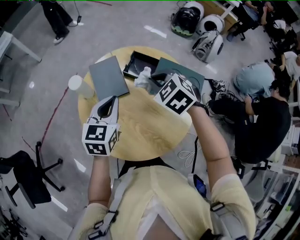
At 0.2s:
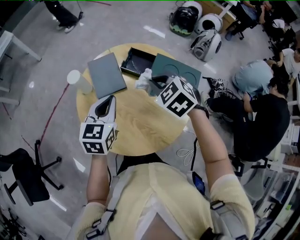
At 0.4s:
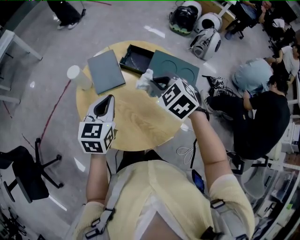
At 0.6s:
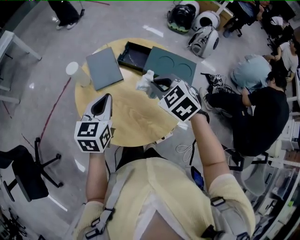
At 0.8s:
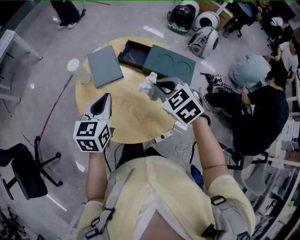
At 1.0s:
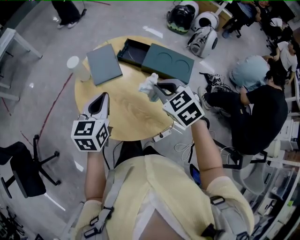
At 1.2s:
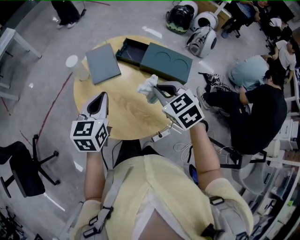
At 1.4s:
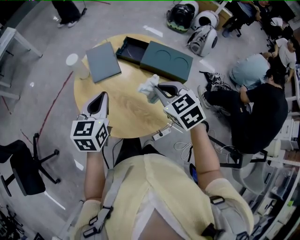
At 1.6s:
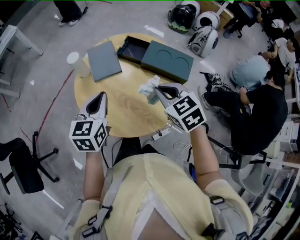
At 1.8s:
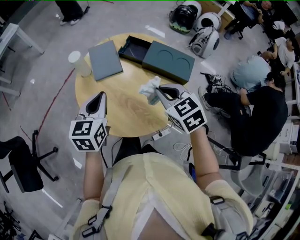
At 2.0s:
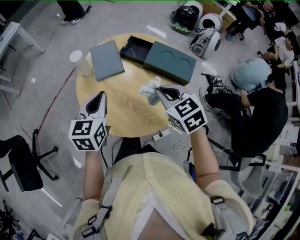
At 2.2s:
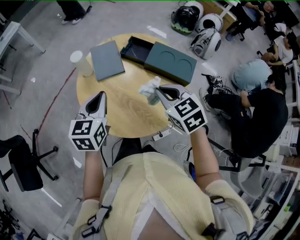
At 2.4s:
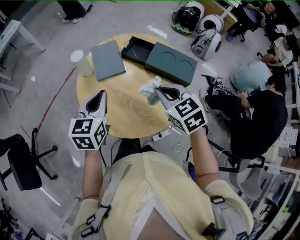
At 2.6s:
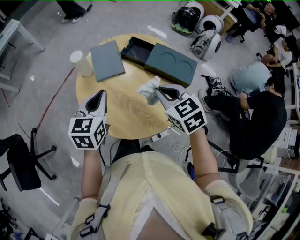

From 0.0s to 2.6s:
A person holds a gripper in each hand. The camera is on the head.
From 0.0s to 1.2s: The left gripper shifts some 10 cm backward. Meanwhile the right gripper moves backward, about 15 cm.
From 1.2s to 2.6s: The grippers stay close to where they were, moving slightly.

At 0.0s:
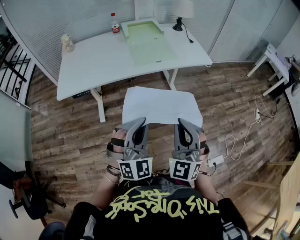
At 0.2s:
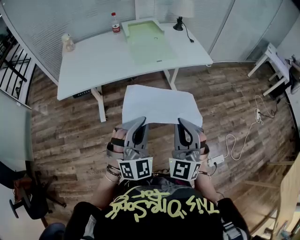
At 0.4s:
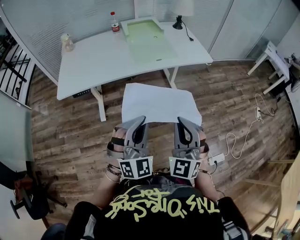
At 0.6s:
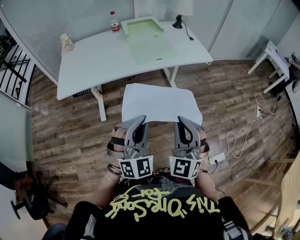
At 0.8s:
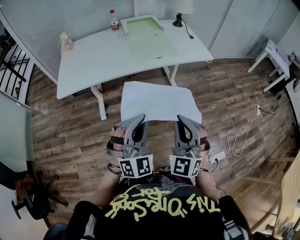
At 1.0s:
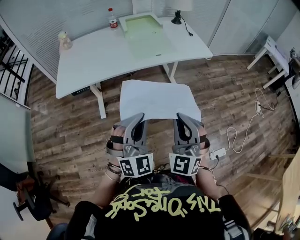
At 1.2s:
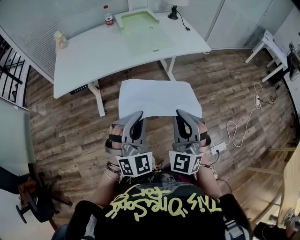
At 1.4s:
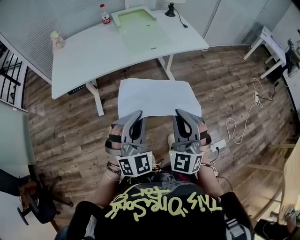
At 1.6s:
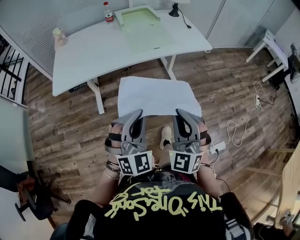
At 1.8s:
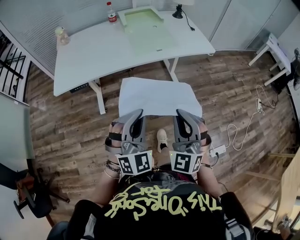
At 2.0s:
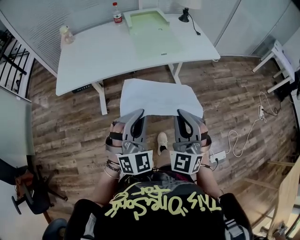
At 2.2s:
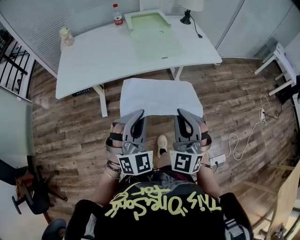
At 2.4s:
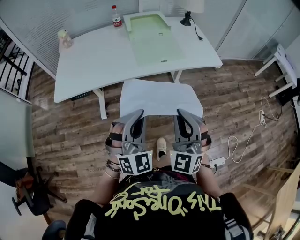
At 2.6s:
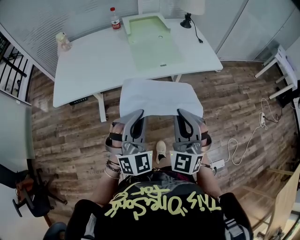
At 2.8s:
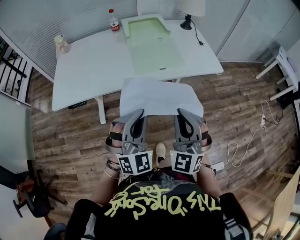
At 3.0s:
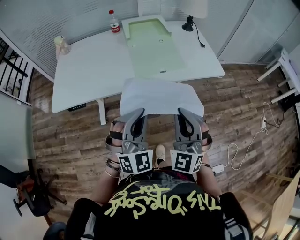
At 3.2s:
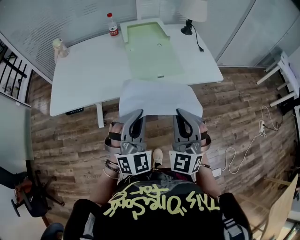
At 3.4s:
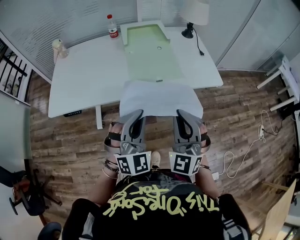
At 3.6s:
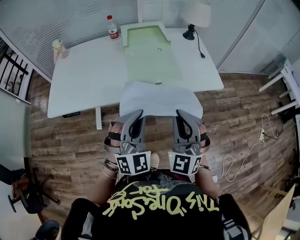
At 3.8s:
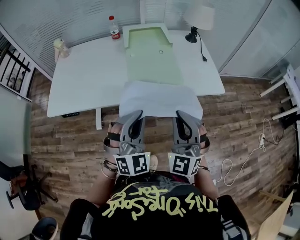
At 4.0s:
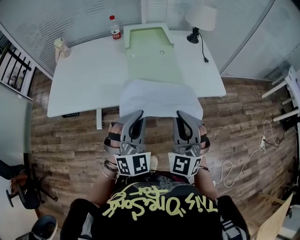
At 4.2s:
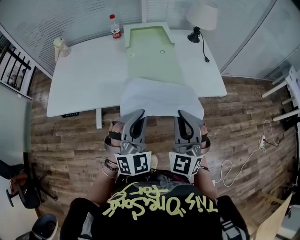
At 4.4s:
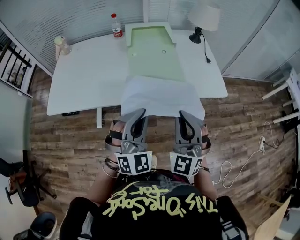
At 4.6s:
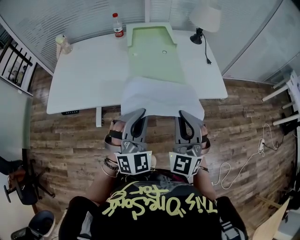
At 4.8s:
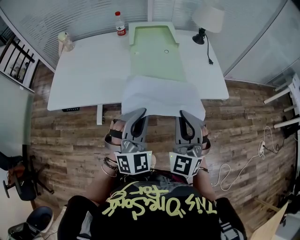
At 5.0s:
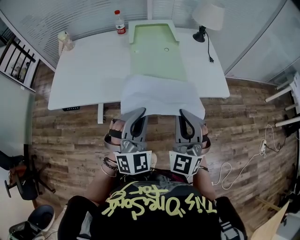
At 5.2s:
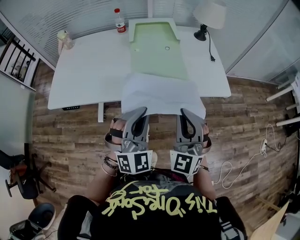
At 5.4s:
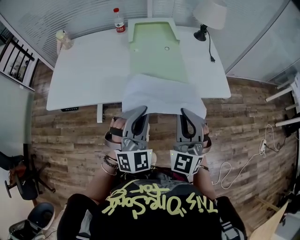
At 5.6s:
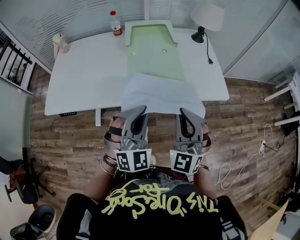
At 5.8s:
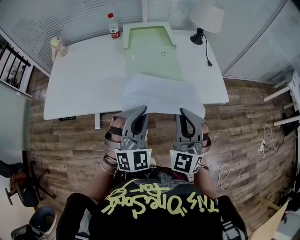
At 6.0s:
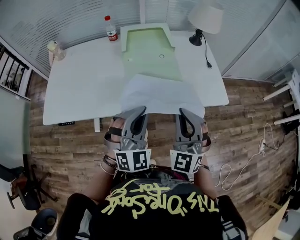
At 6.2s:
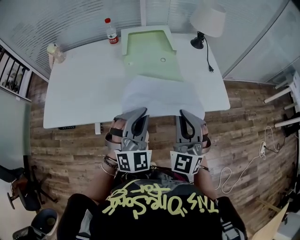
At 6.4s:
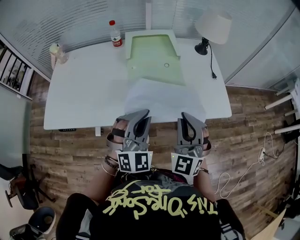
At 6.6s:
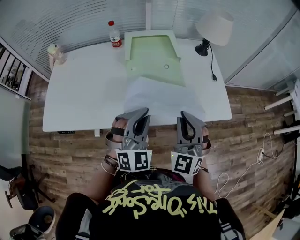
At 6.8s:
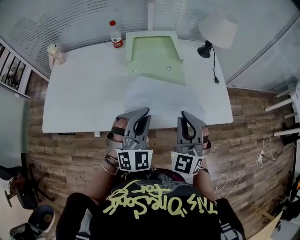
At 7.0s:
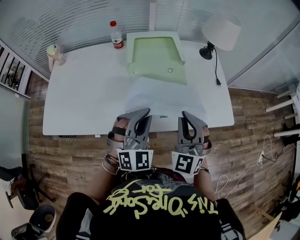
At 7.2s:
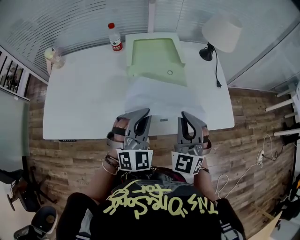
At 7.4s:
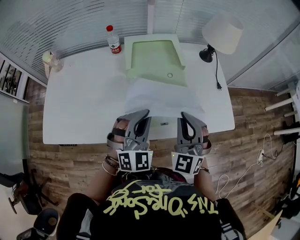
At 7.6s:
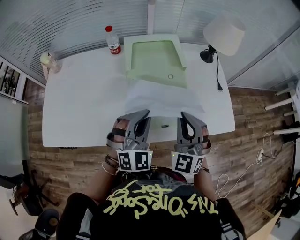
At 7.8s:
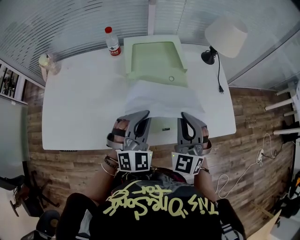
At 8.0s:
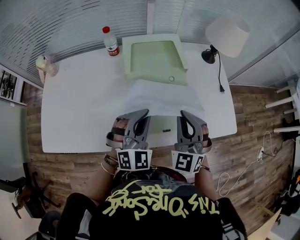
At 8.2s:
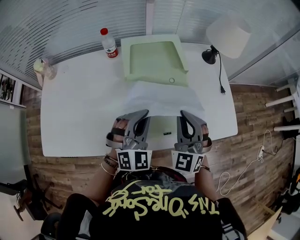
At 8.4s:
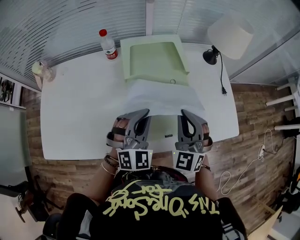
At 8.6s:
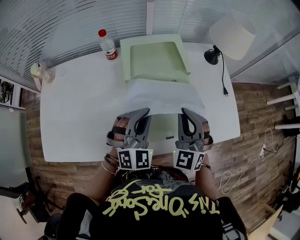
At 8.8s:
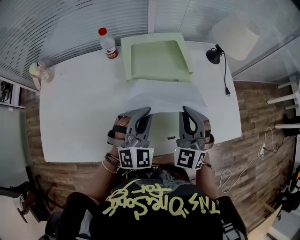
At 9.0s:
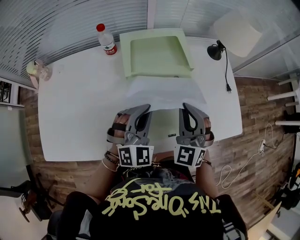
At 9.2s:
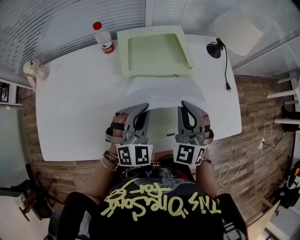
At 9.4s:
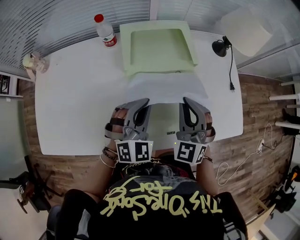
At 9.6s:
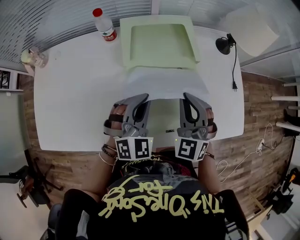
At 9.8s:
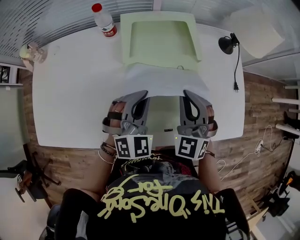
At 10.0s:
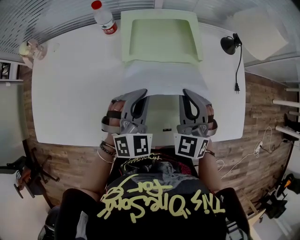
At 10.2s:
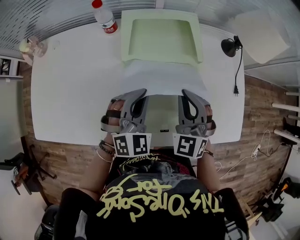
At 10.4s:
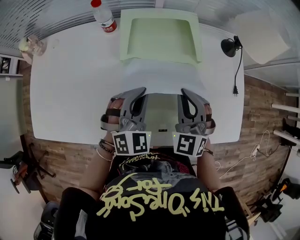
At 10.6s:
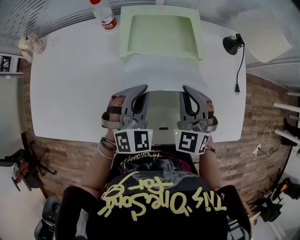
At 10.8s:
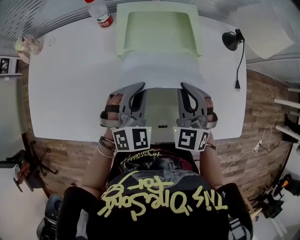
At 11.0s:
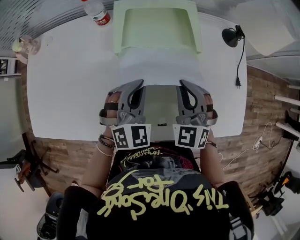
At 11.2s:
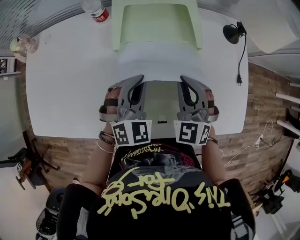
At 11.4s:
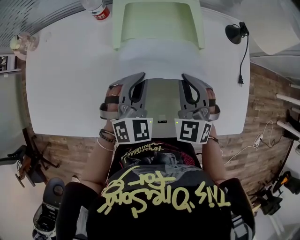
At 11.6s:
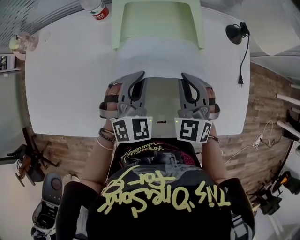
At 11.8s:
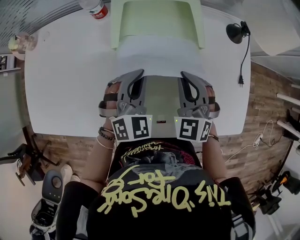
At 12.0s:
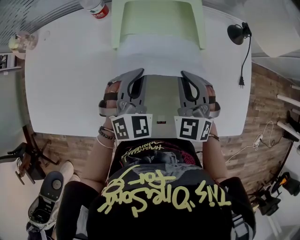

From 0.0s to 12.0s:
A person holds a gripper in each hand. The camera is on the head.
From 0.0s to 1.6s: The grippers move only a little.
From 1.6s to 3.0s: Both grippers travel together forward, approximately 15 cm.
From 3.0s to 4.4s: Both grippers travel together forward, about 10 cm.
From 4.4s to 6.0s: Both grippers travel together forward, some 5 cm.
From 6.0s to 7.6s: The two grippers go approximately 15 cm forward.
From 7.6s to 9.0s: The two grippers go about 5 cm forward.
From 9.0s to 10.4s: The right gripper shifts about 5 cm forward. Meanwhile the left gripper moves about 5 cm.
From 10.4s to 12.0s: The grippers stay close to where they were, moving slightly.

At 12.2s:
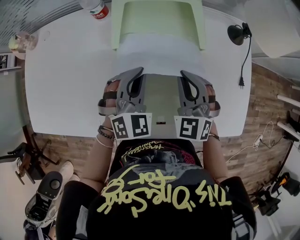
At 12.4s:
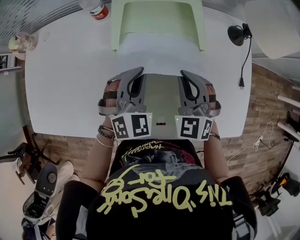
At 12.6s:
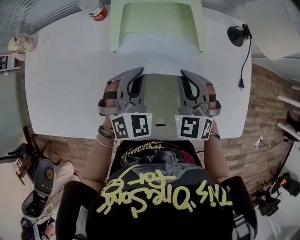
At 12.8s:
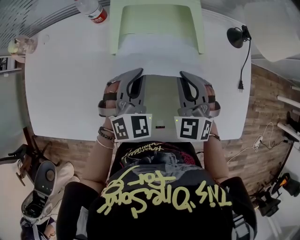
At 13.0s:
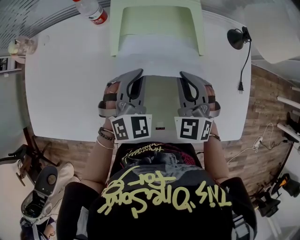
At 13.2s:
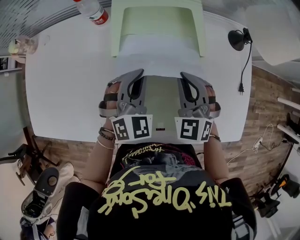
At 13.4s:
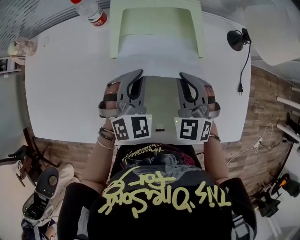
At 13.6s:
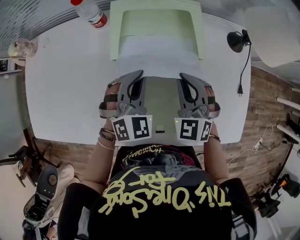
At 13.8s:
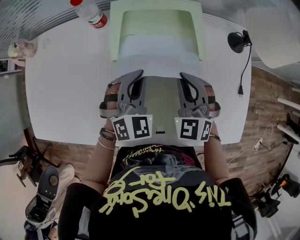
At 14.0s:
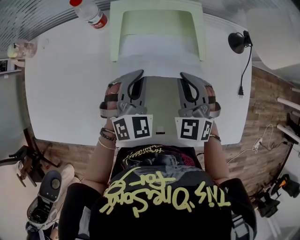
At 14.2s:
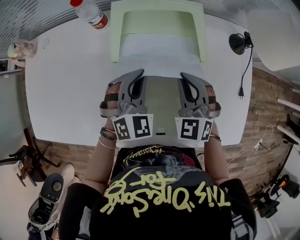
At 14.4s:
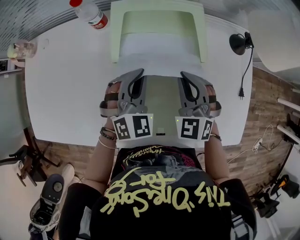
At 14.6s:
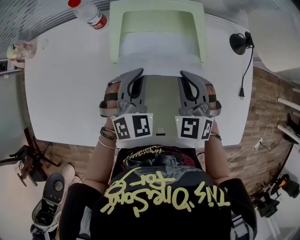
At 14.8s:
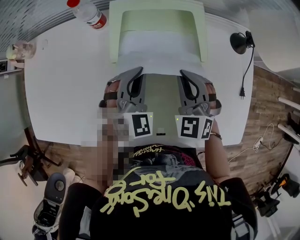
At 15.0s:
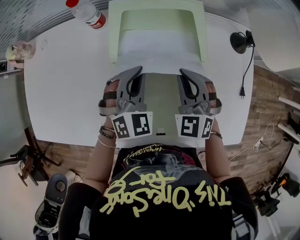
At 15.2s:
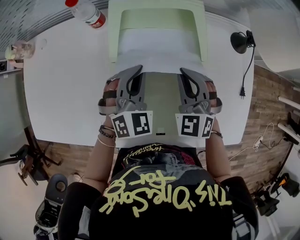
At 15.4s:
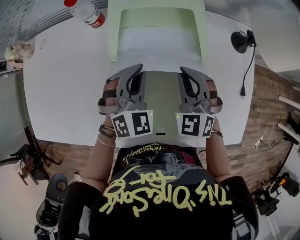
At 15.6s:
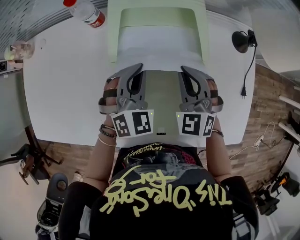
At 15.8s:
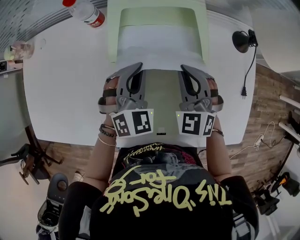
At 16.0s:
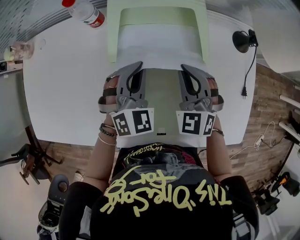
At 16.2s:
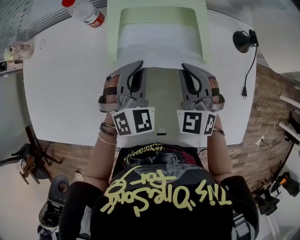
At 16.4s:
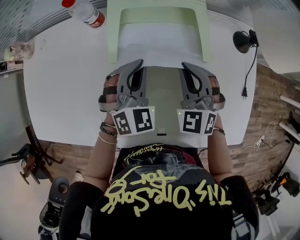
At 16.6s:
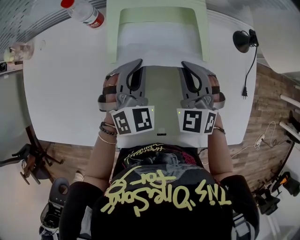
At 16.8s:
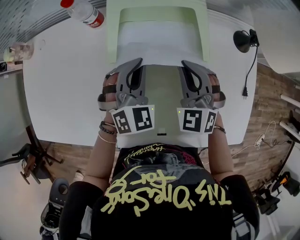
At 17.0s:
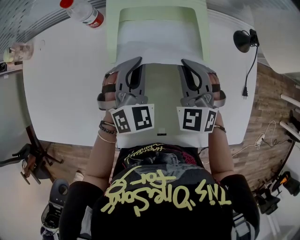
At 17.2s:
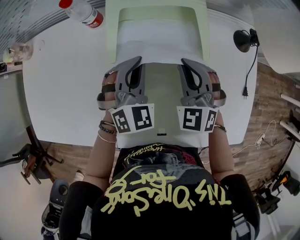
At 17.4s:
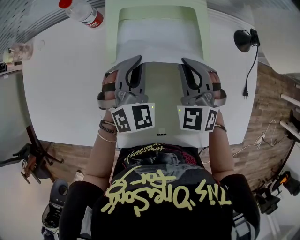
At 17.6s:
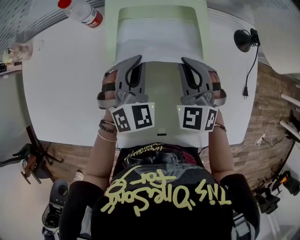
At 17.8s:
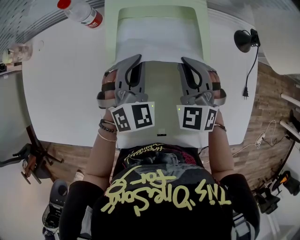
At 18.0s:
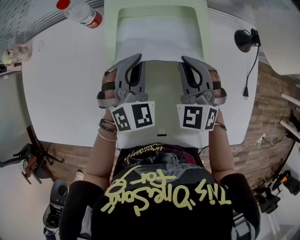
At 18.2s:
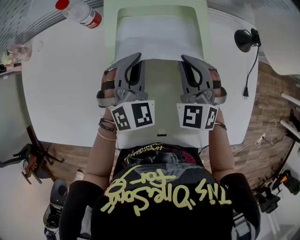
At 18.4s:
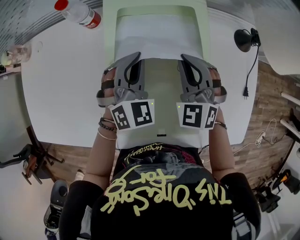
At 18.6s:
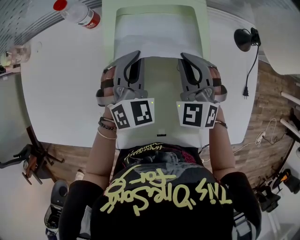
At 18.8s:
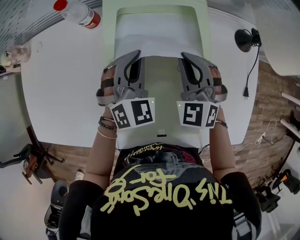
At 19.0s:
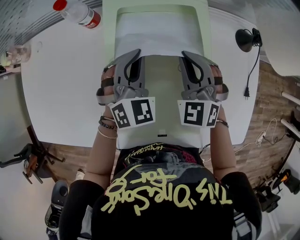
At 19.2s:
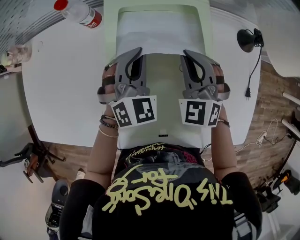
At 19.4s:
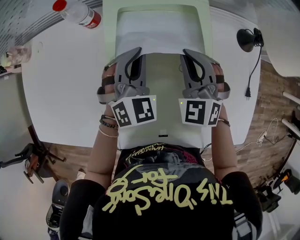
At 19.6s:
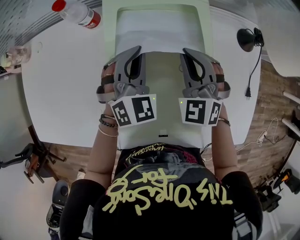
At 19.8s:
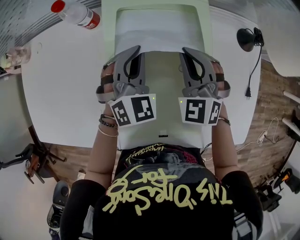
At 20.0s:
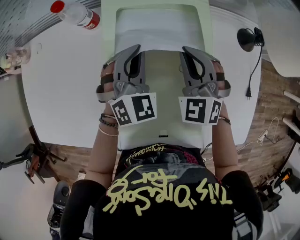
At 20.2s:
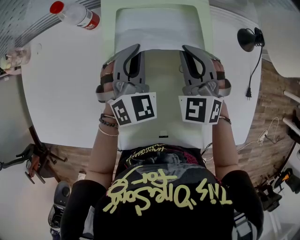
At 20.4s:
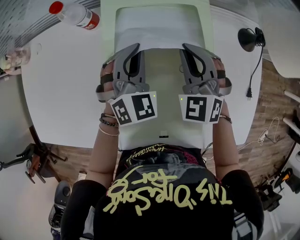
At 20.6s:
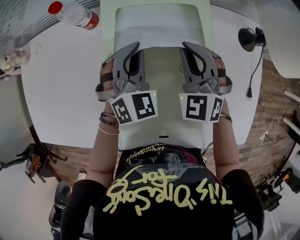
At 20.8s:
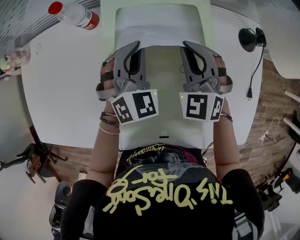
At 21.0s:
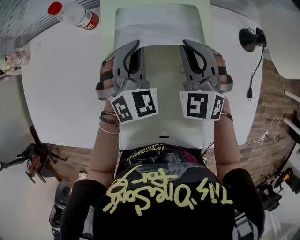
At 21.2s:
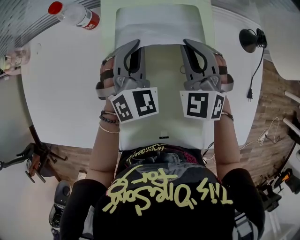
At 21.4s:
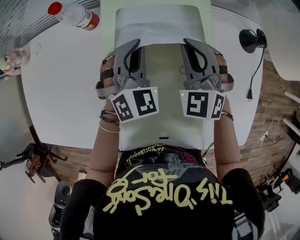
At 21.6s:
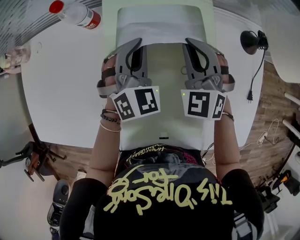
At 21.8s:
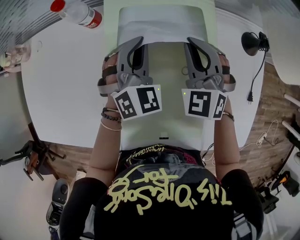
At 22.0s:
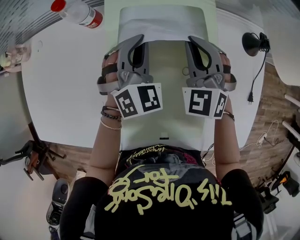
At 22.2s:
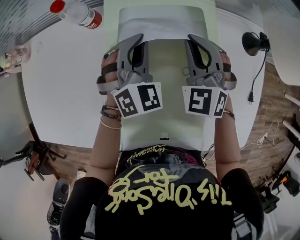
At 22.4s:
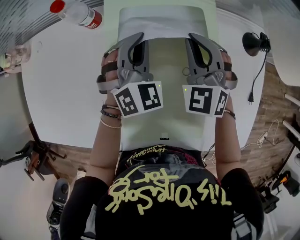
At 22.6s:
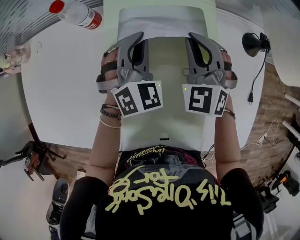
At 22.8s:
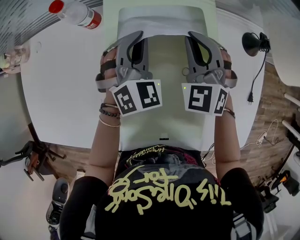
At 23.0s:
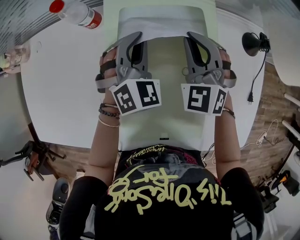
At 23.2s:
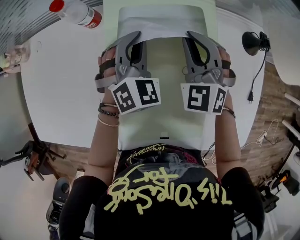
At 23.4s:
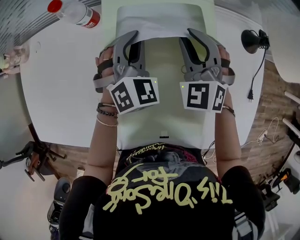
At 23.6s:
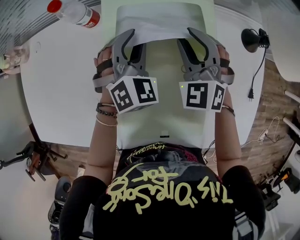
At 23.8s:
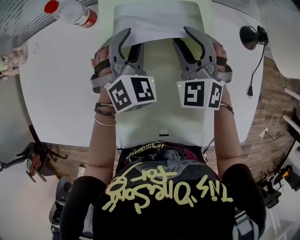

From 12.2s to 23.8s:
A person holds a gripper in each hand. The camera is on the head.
From 12.2s to 15.0s: The grippers stay close to where they were, moving slightly.
From 15.0s to 19.4s: The grippers stay close to where they were, moving slightly.
From 19.4s to 22.4s: The grippers stay close to where they were, moving slightly.
From 22.4s to 23.8s: The left gripper opens. Meanwhile the right gripper opens.
